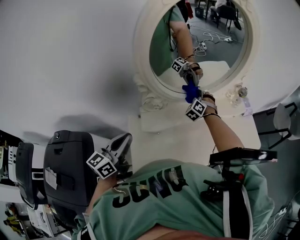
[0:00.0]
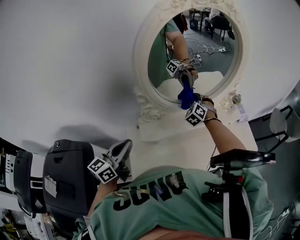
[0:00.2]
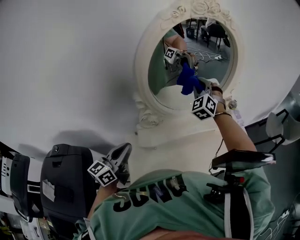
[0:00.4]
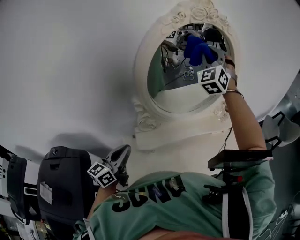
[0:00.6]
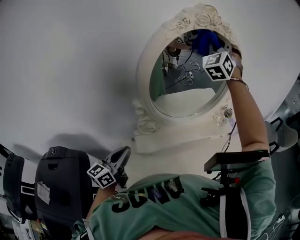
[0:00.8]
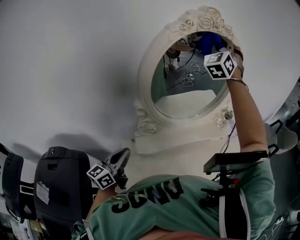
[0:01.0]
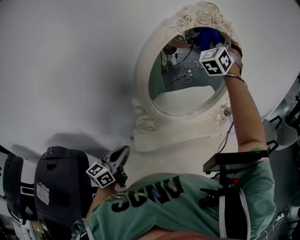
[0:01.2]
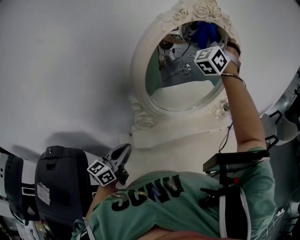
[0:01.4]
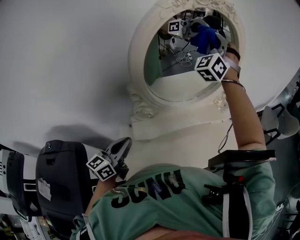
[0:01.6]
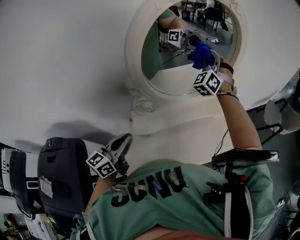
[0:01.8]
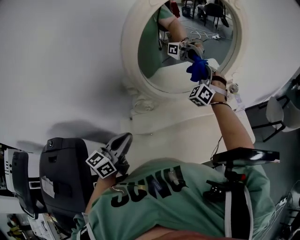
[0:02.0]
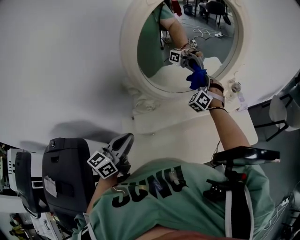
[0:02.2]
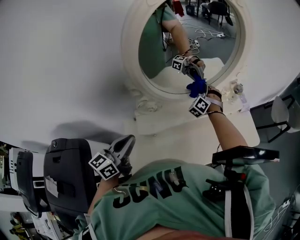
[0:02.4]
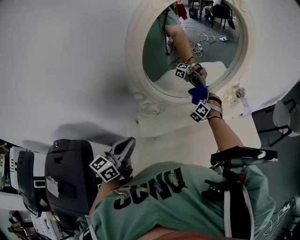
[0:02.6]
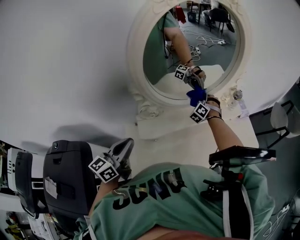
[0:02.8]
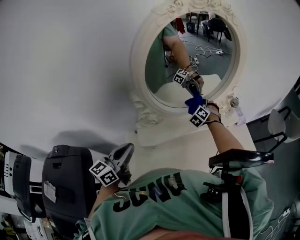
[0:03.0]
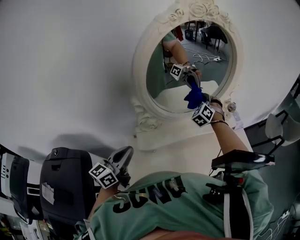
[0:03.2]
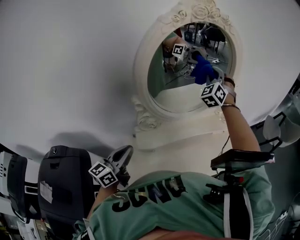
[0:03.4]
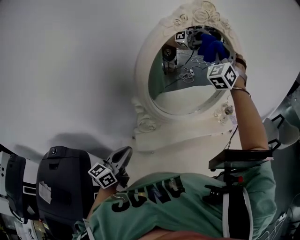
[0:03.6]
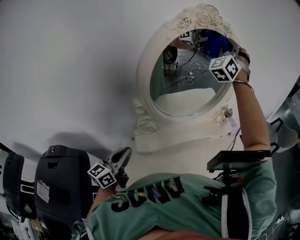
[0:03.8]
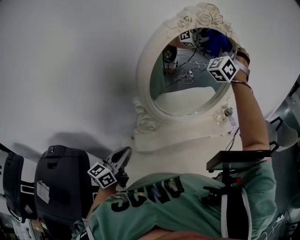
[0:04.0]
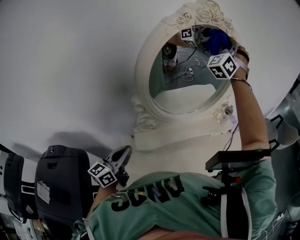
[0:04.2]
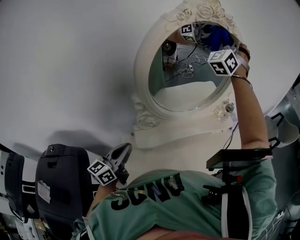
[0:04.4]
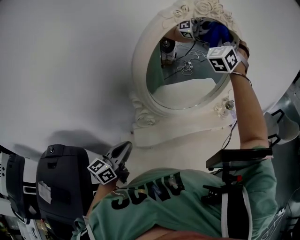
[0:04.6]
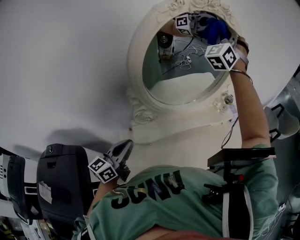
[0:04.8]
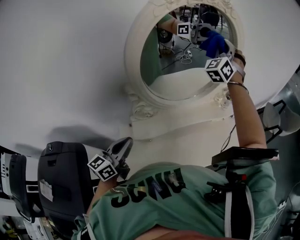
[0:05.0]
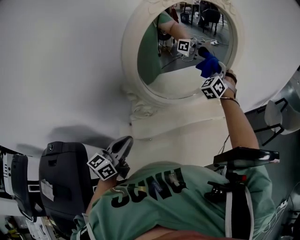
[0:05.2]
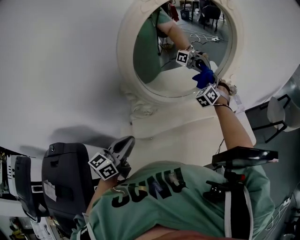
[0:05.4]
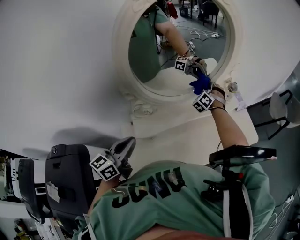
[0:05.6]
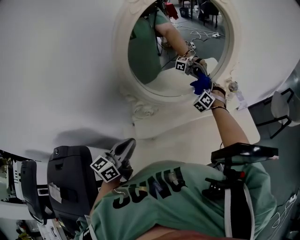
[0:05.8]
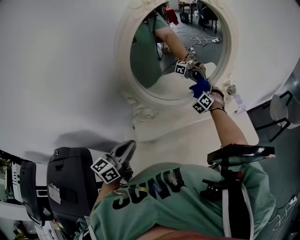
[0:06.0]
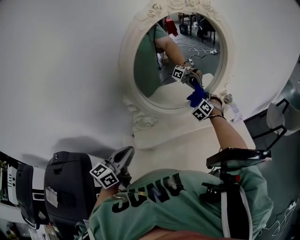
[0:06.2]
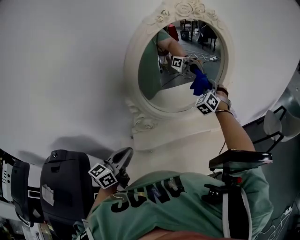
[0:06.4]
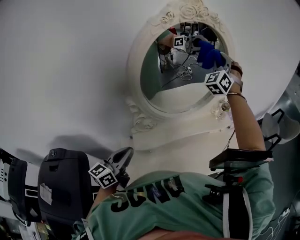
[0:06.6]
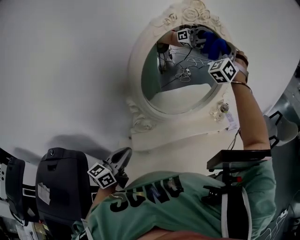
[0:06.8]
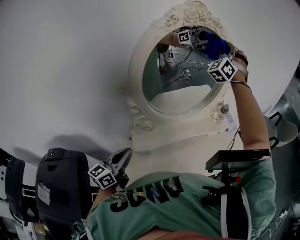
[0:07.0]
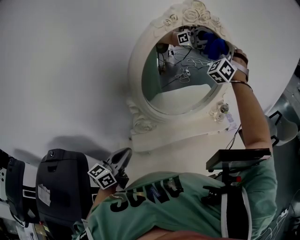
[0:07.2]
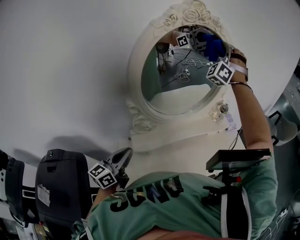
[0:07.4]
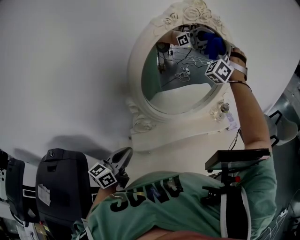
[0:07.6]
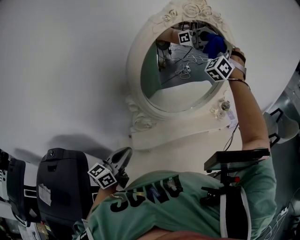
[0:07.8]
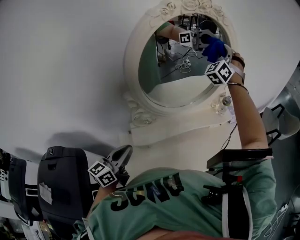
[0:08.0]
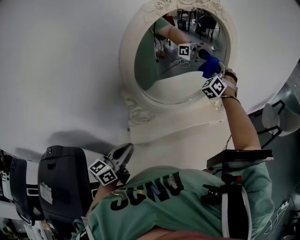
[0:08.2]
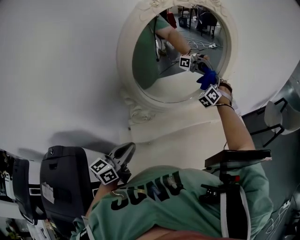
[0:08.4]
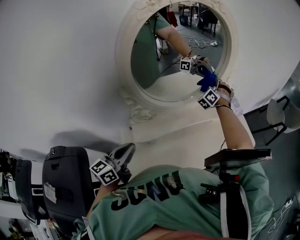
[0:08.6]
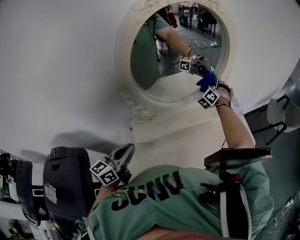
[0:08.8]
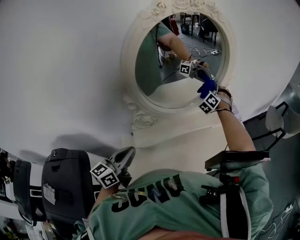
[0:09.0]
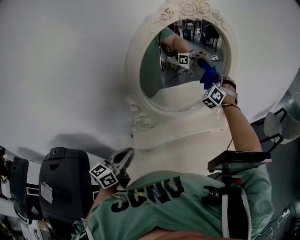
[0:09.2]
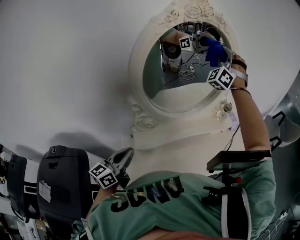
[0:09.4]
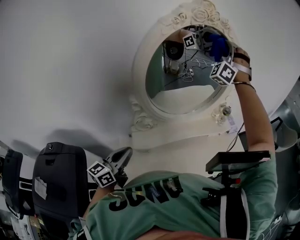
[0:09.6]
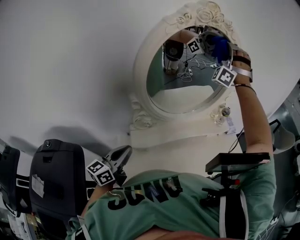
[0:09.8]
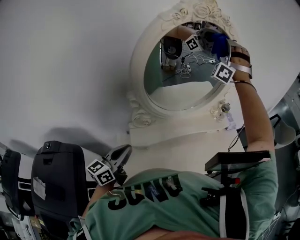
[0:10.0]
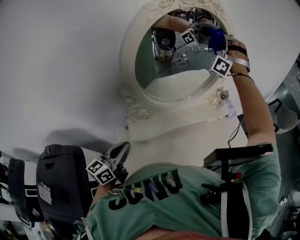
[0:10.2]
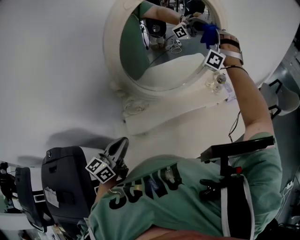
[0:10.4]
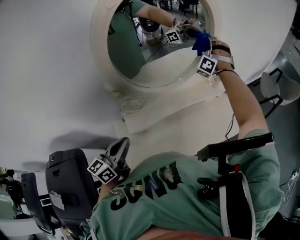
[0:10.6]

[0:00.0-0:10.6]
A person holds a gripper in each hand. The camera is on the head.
0:00.0 to 0:01.6: The right gripper travels upward by roughly 40 cm, and points its fingers some 40 degrees further upward.
0:01.6 to 0:03.0: The right gripper heads downward, covering some 40 cm, and tilts its fingers approximately 50 degrees downward.
0:03.0 to 0:04.6: The right gripper is displaced upward by some 40 cm, and tilts its fingers some 50 degrees upward.
0:04.6 to 0:06.0: The right gripper shifts roughly 40 cm downward, and angles its fingers downward, by about 40 degrees.
0:06.0 to 0:07.6: The right gripper is displaced upward by about 40 cm, and tilts its fingers approximately 40 degrees upward.
0:07.6 to 0:09.0: The right gripper moves downward, roughly 35 cm, and angles its fingers downward, by some 40 degrees.
0:09.0 to 0:10.6: The right gripper goes upward and returns, roughly 35 cm each way, and rotates approximately 30 degrees.

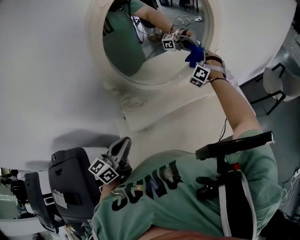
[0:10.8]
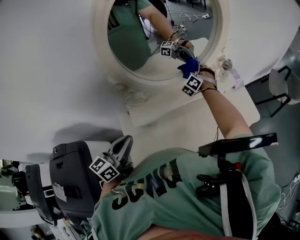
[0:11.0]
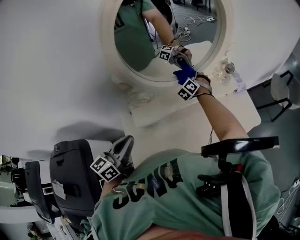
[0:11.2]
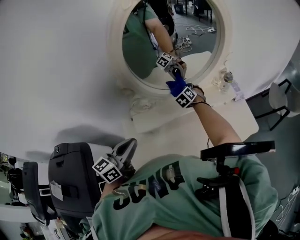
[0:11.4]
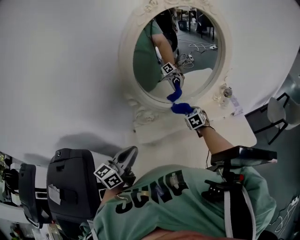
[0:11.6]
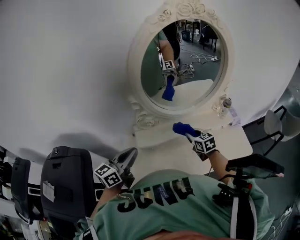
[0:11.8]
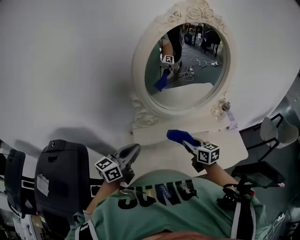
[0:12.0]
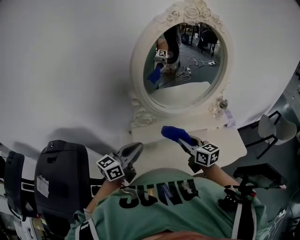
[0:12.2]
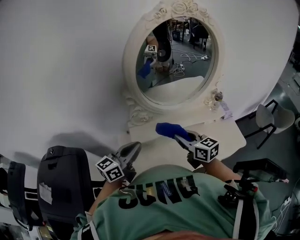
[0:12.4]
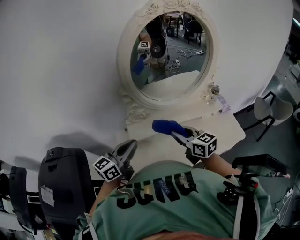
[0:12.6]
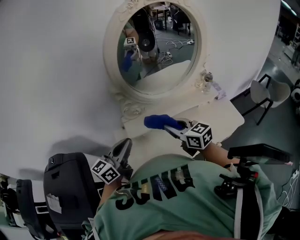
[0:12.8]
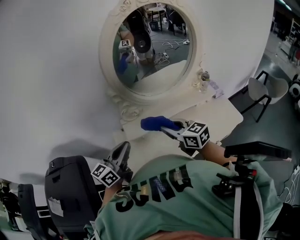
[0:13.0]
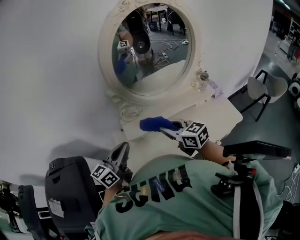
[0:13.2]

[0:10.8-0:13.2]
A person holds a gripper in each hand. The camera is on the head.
0:10.8 to 0:12.0: The right gripper moves approximately 15 cm downward and comes back, and swivels roughly 100 degrees.
0:12.0 to 0:13.2: The right gripper goes some 10 cm upward, to the left and backward.

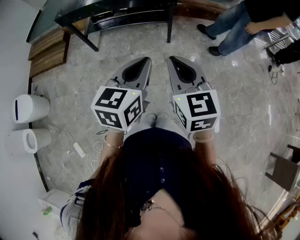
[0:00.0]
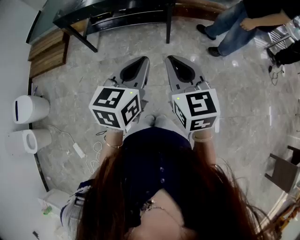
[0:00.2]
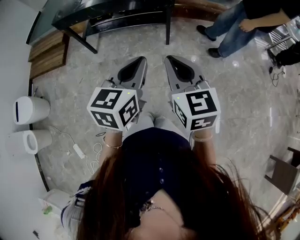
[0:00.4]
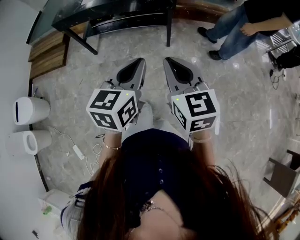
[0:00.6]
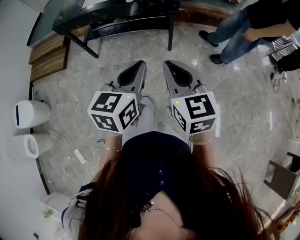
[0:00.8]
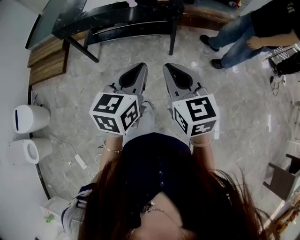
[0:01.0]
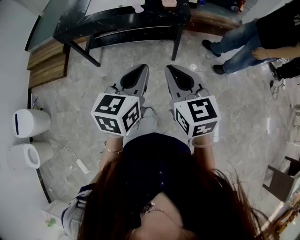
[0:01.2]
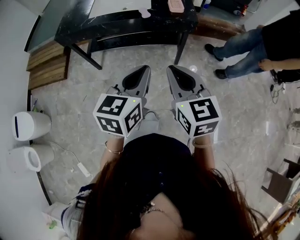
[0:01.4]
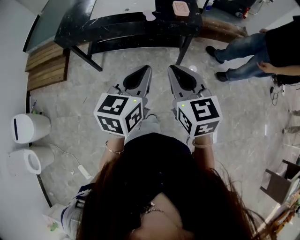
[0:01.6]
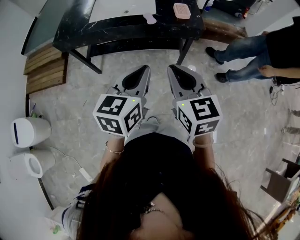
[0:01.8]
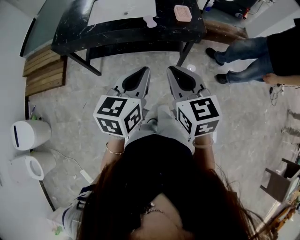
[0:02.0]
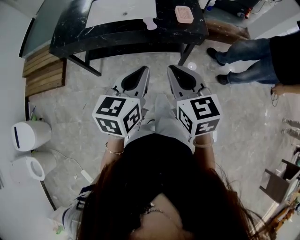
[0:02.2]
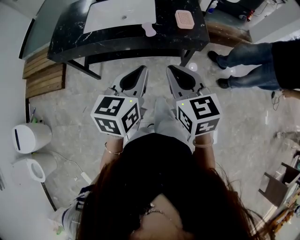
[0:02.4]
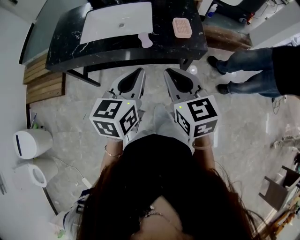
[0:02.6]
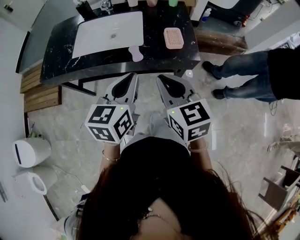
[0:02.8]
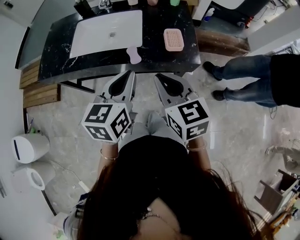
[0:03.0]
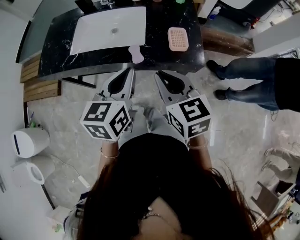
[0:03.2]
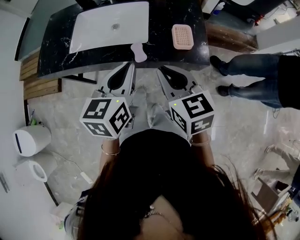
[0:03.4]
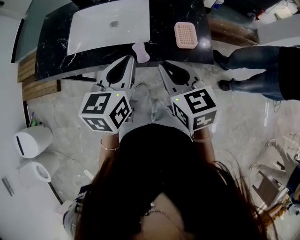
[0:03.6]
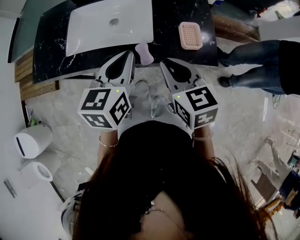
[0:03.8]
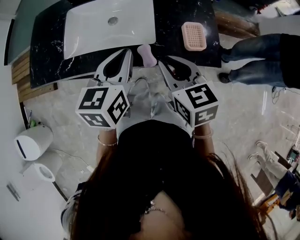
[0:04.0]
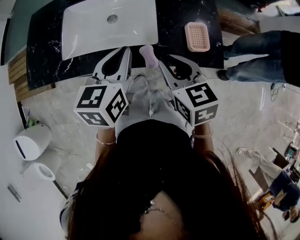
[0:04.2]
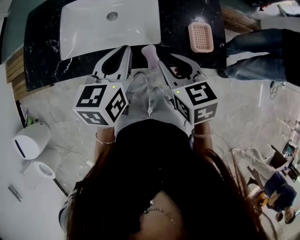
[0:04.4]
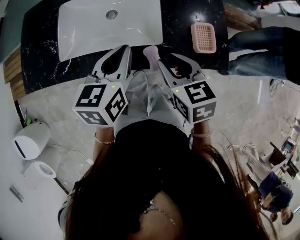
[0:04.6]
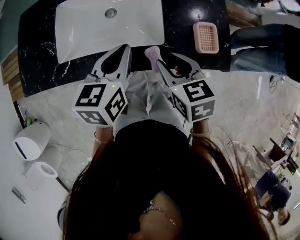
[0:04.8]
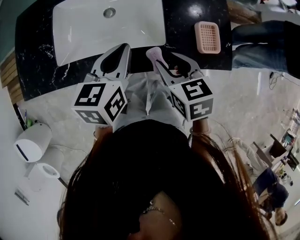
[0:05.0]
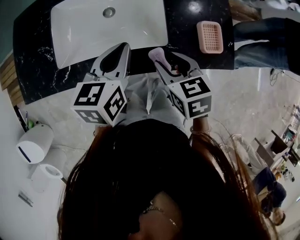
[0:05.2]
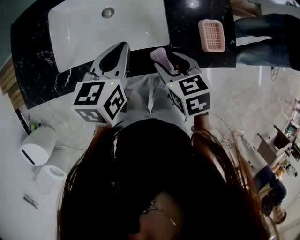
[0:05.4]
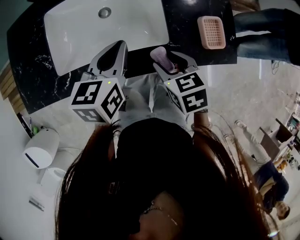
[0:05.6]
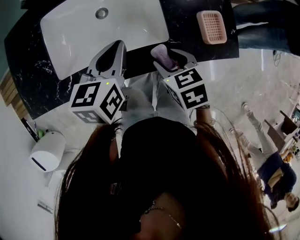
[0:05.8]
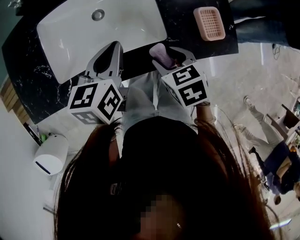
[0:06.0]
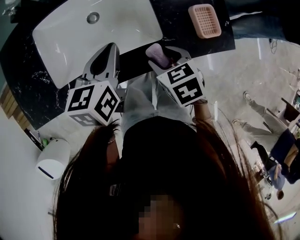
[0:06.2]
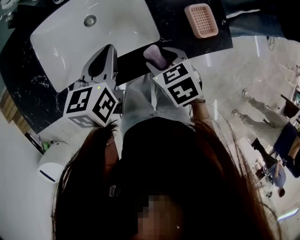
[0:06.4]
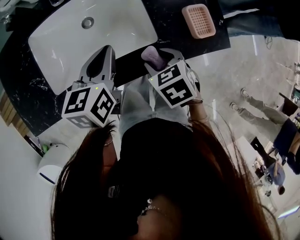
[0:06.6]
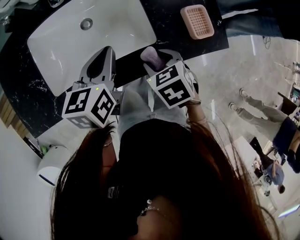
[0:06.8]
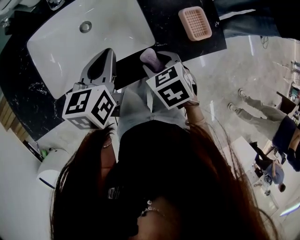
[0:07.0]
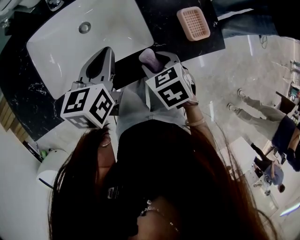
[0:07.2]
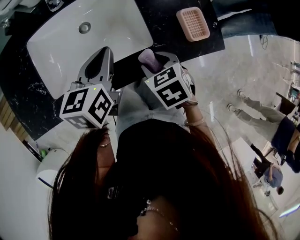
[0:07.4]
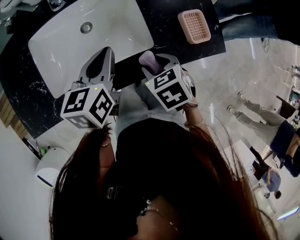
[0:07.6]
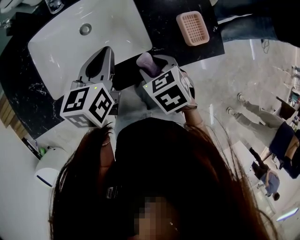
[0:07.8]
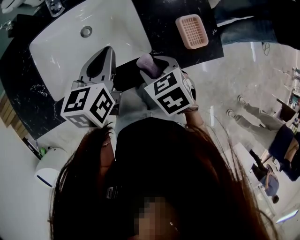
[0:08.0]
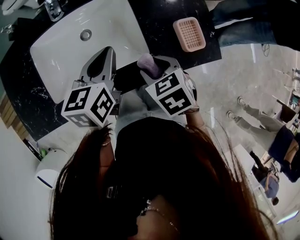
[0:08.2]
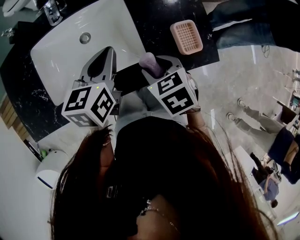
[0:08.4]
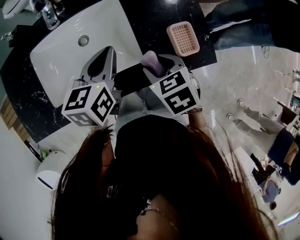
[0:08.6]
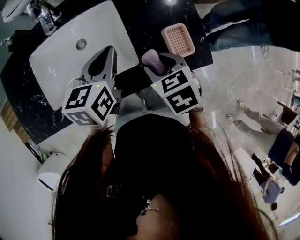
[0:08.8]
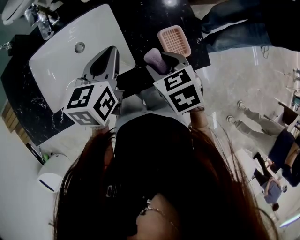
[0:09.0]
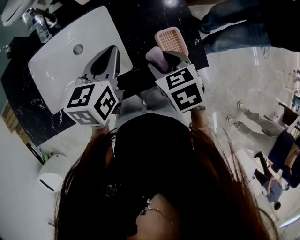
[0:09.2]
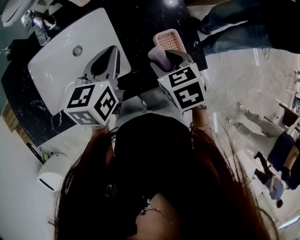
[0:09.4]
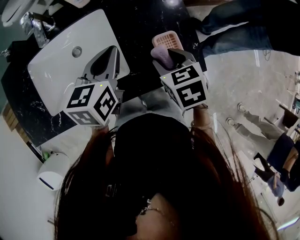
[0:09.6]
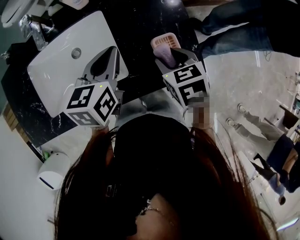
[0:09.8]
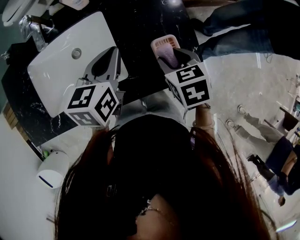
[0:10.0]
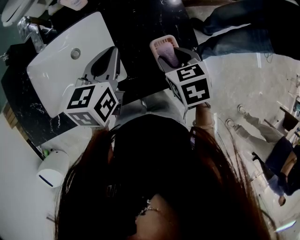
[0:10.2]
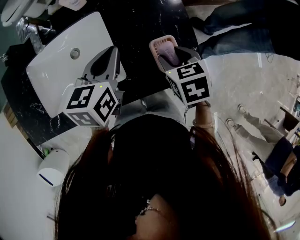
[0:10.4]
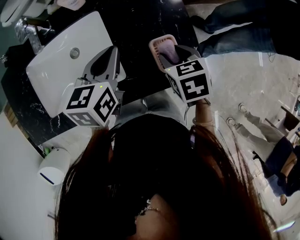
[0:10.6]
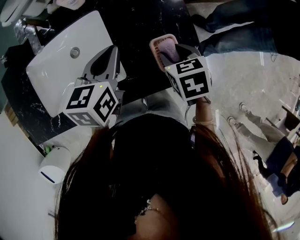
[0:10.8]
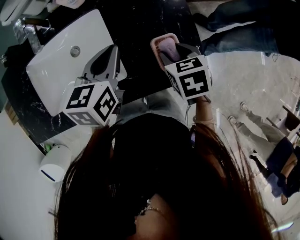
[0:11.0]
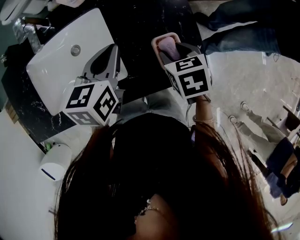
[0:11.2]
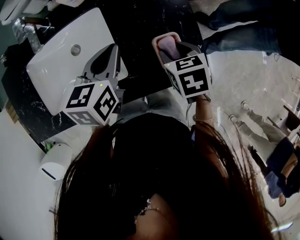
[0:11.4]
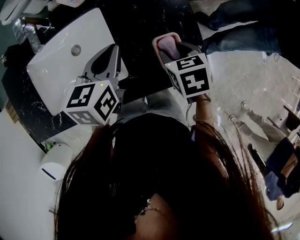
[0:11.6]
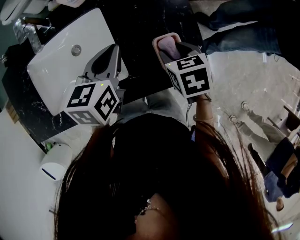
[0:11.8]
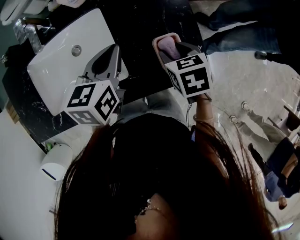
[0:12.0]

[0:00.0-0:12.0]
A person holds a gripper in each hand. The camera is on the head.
0:00.0 to 0:01.6: The grippers both shift forward and to the left by roughly 30 cm.
0:01.6 to 0:03.0: The grippers both shift forward by some 30 cm.
0:03.0 to 0:04.4: The left gripper is displaced forward by some 20 cm; the right gripper moves forward and downward, about 20 cm.
0:04.4 to 0:06.0: The right gripper moves downward, about 10 cm, swivels roughly 20 degrees, and opens its fingers. Meanwhile the left gripper is displaced downward and forward by approximately 10 cm.
0:06.0 to 0:07.6: There are only small adjustments of the grippers.
0:07.6 to 0:09.0: The left gripper moves to the right, approximately 10 cm. Meanwhile the right gripper goes approximately 10 cm to the right, upward and forward.
0:09.0 to 0:10.4: The left gripper ends up some 5 cm from where it was. The right gripper heads to the right and forward, covering some 10 cm.
0:10.4 to 0:12.0: The grippers make only small movements.
